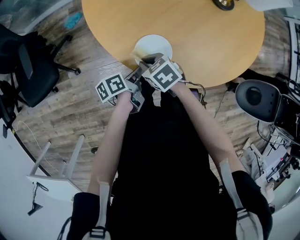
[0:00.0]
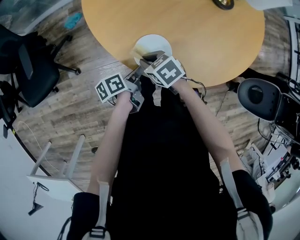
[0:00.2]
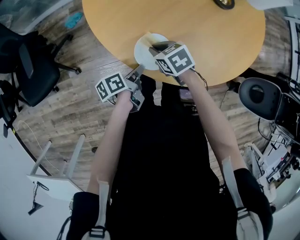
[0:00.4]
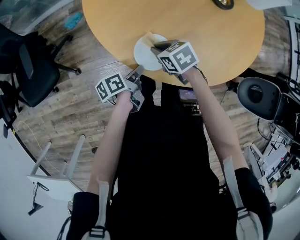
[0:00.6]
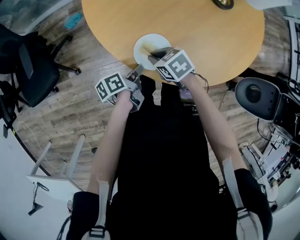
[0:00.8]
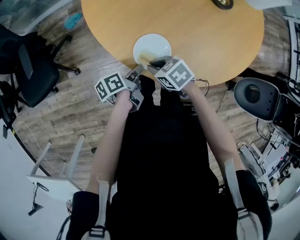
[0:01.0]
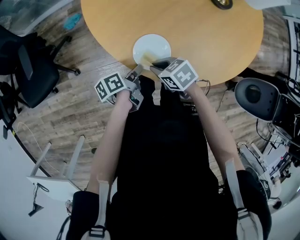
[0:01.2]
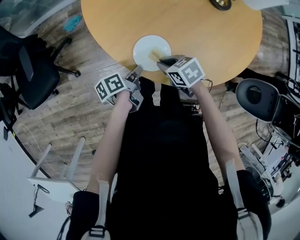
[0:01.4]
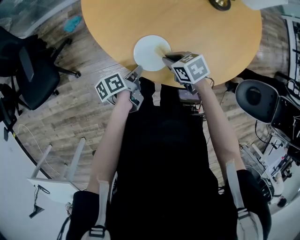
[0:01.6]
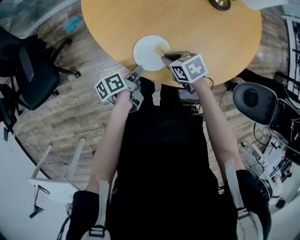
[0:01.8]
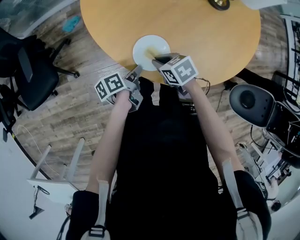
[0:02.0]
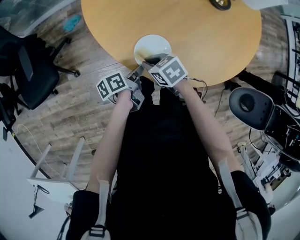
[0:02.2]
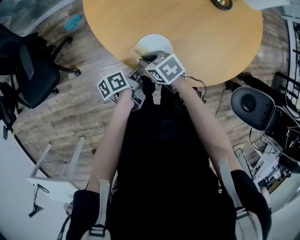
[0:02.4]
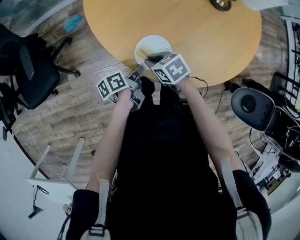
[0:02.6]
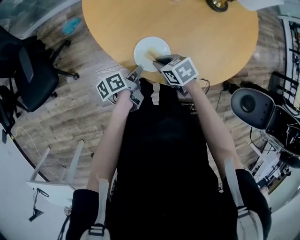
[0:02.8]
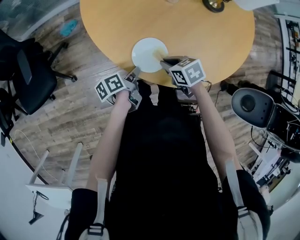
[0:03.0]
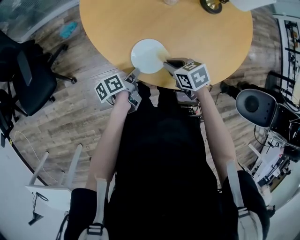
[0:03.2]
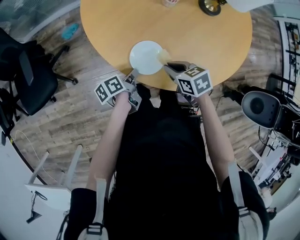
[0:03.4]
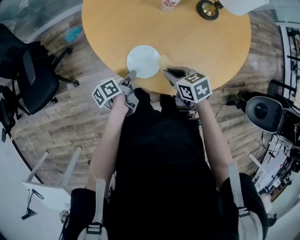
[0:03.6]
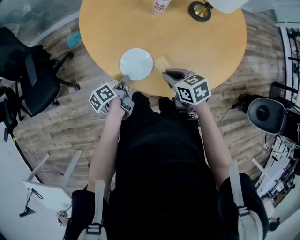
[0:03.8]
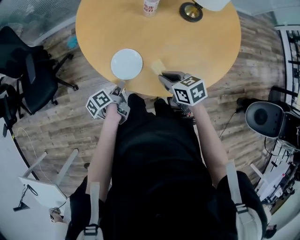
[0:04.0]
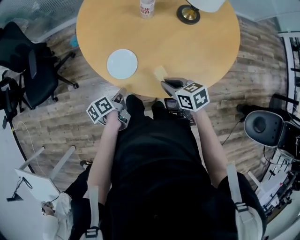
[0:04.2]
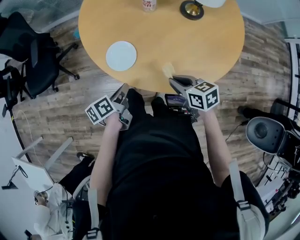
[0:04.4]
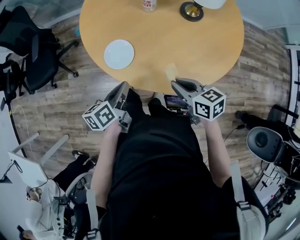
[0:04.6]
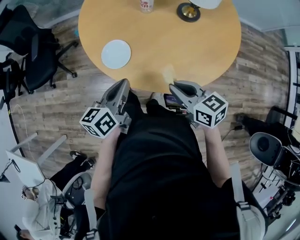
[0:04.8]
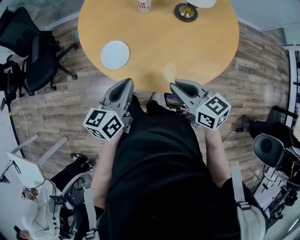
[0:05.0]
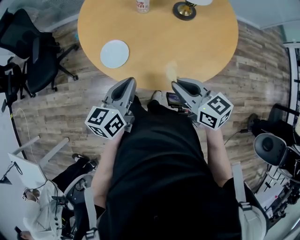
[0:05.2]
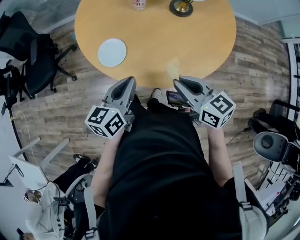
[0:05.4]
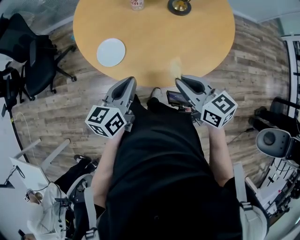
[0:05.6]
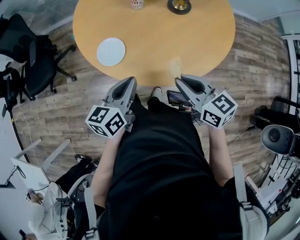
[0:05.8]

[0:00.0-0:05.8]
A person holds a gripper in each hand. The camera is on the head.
0:00.0 to 0:01.4: The right gripper changes place by some 10 cm.
0:02.8 to 0:04.4: The right gripper ends up some 25 cm from where it was.
0:04.4 to 0:05.8: The right gripper heads upward, covering approximately 10 cm, and rotates about 20 degrees.

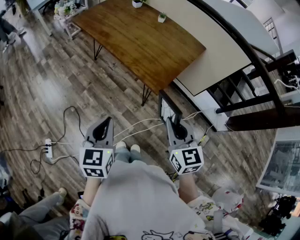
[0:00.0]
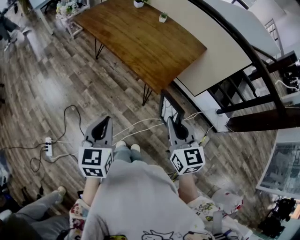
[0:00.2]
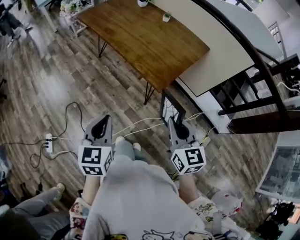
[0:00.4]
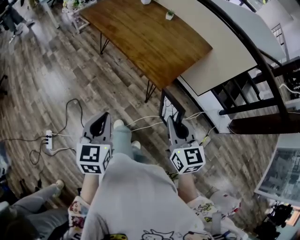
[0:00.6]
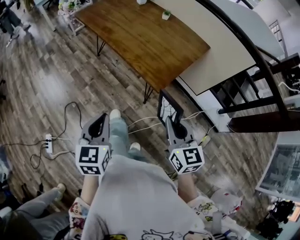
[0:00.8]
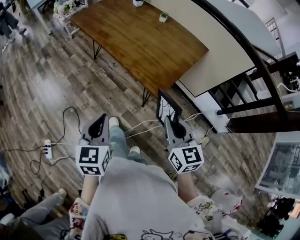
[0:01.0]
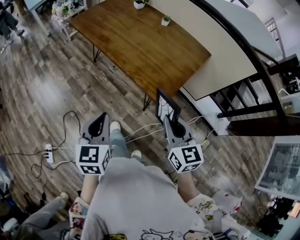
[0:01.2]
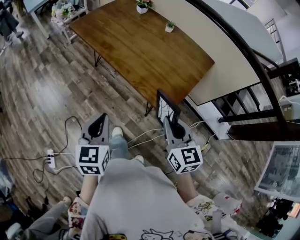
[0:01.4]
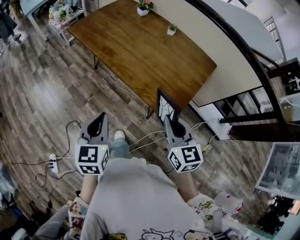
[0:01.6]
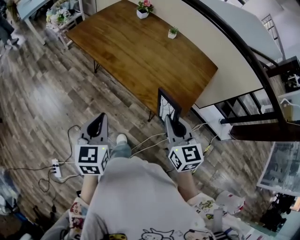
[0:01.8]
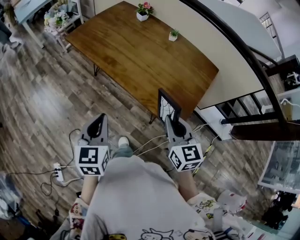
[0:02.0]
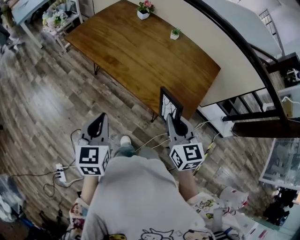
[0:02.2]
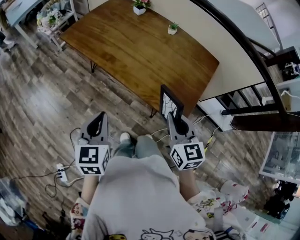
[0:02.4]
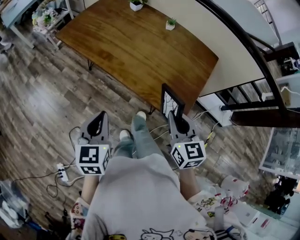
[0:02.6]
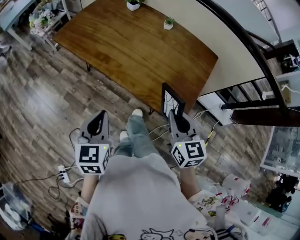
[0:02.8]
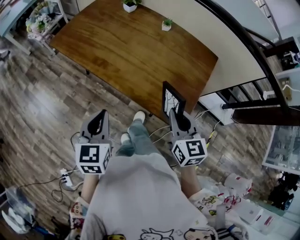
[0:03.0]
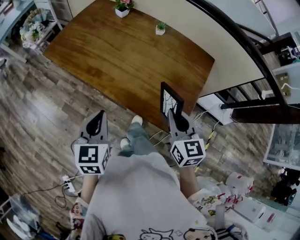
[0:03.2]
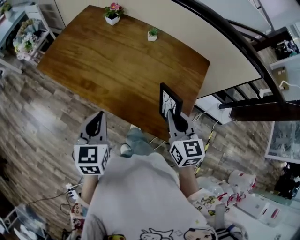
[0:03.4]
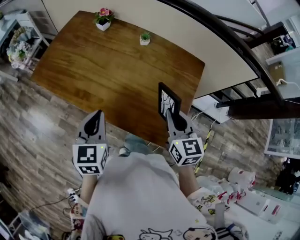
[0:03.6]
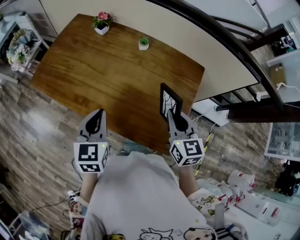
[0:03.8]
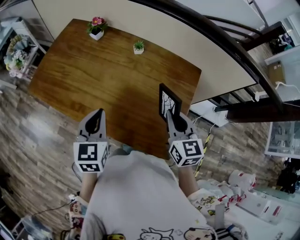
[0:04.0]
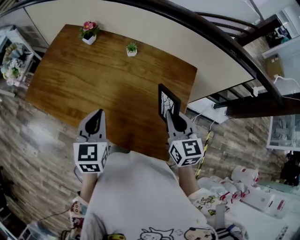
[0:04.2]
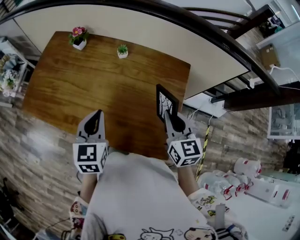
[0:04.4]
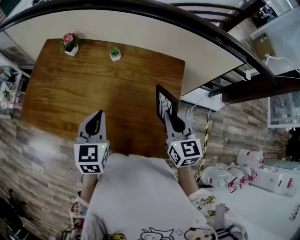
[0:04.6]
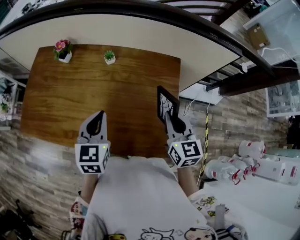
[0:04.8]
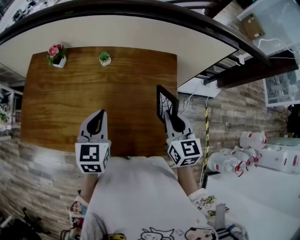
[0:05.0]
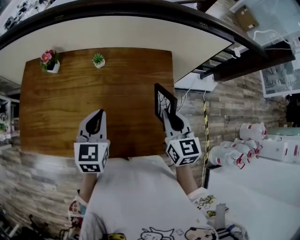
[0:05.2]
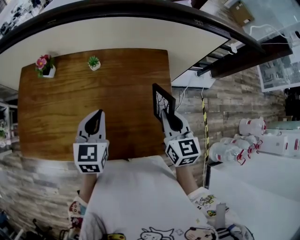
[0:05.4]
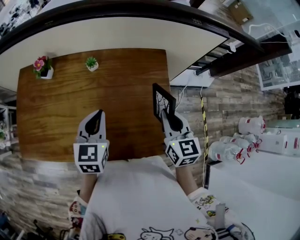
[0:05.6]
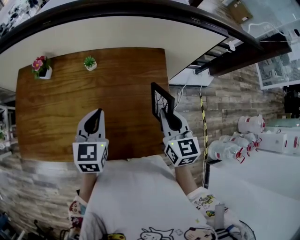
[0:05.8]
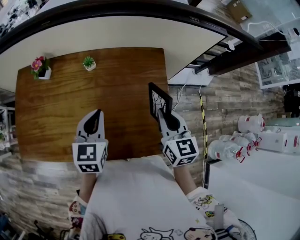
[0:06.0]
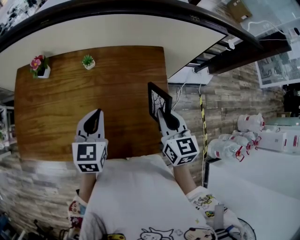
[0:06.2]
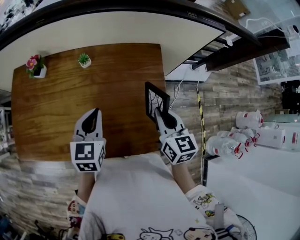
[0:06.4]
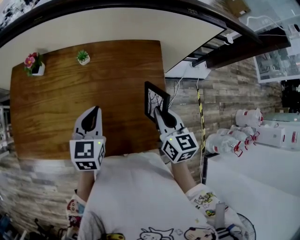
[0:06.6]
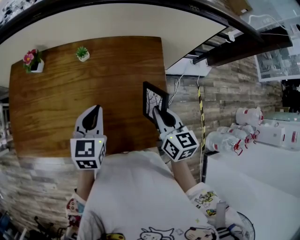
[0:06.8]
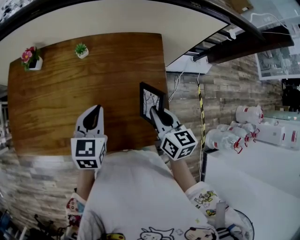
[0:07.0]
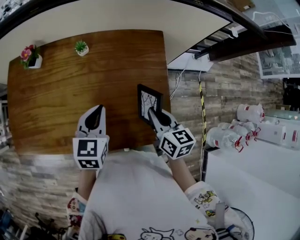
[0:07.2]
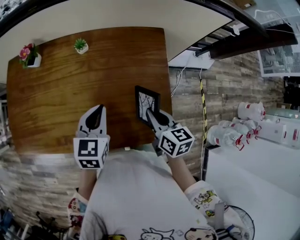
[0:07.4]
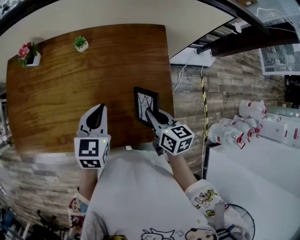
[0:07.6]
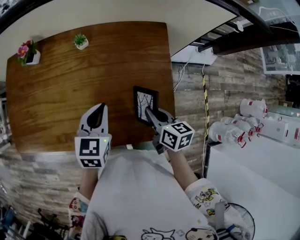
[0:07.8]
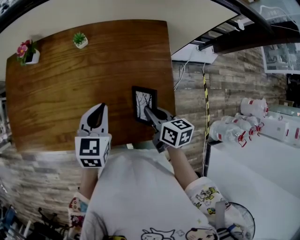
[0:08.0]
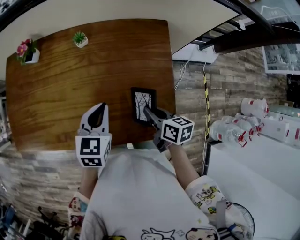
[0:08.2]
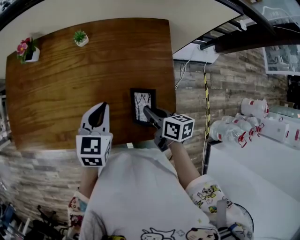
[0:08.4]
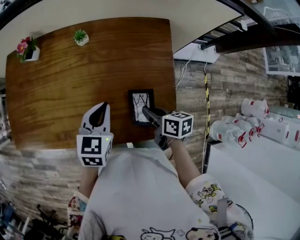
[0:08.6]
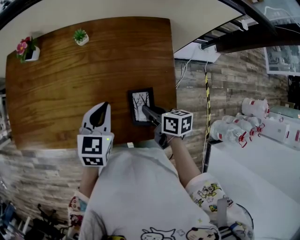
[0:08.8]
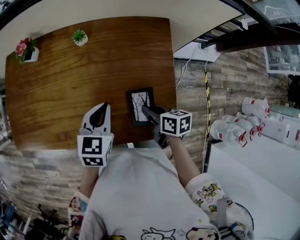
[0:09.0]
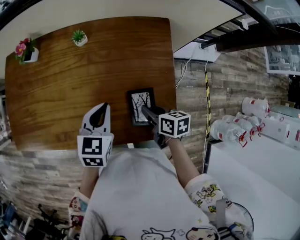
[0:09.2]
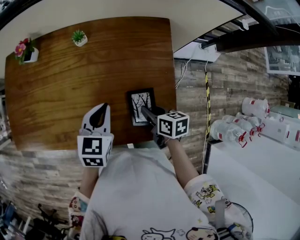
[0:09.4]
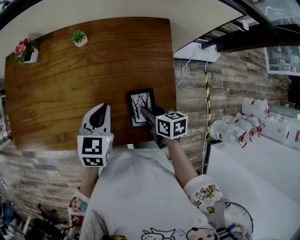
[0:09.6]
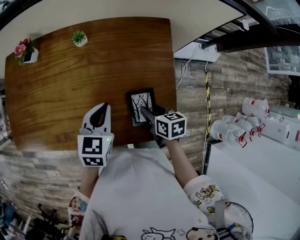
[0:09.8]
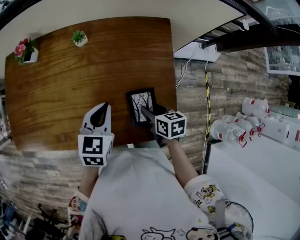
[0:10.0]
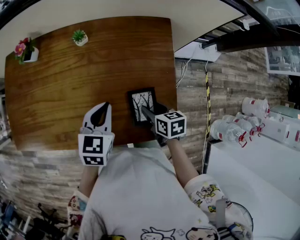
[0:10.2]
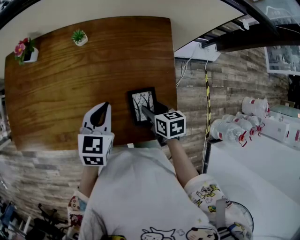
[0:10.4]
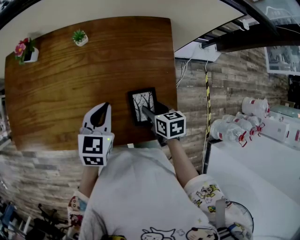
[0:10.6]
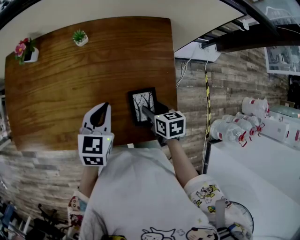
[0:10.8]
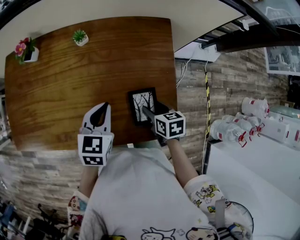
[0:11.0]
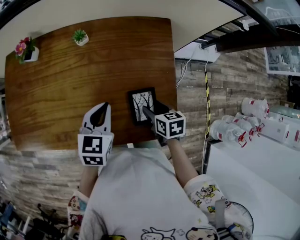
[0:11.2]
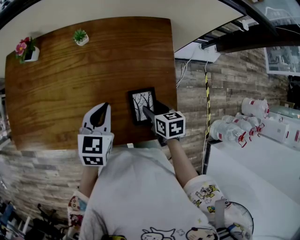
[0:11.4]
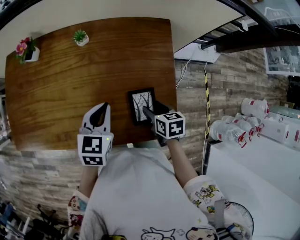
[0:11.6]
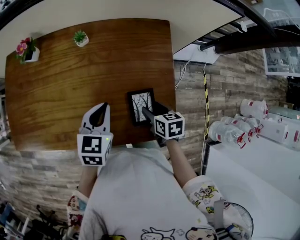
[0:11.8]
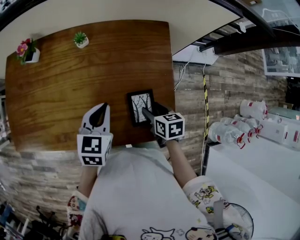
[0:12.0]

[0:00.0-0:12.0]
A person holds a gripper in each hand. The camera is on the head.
0:00.0 to 0:01.6: The left gripper shifts roughly 20 cm forward and to the left. Meanwhile the right gripper travels forward by roughly 20 cm.
0:01.6 to 0:03.0: The two grippers go roughly 10 cm forward.
0:03.0 to 0:04.4: Both grippers move forward and to the right, about 25 cm.
0:04.4 to 0:06.0: The left gripper is displaced forward by about 10 cm, and swivels approximately 20 degrees.
0:06.0 to 0:07.6: The left gripper travels downward by about 5 cm. Meanwhile the right gripper is displaced downward and backward by roughly 10 cm, and changes its angle by about 30 degrees.
0:07.6 to 0:09.0: The right gripper shifts some 5 cm downward, and changes its angle by some 20 degrees.
0:09.0 to 0:10.4: The right gripper opens up.
0:10.4 to 0:12.0: Both grippers stay about where they are.

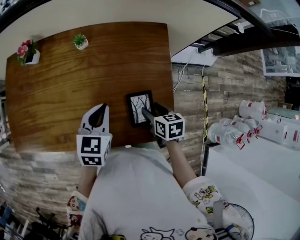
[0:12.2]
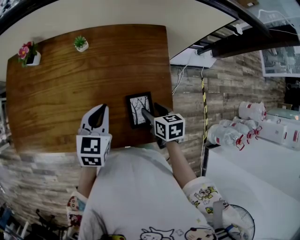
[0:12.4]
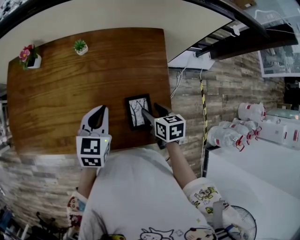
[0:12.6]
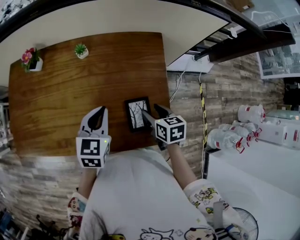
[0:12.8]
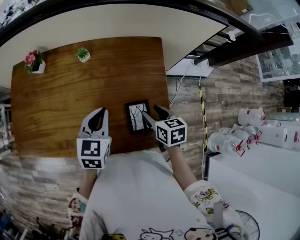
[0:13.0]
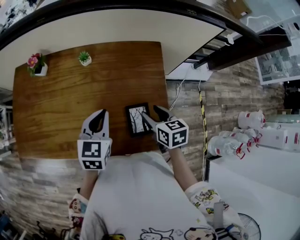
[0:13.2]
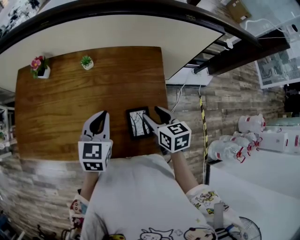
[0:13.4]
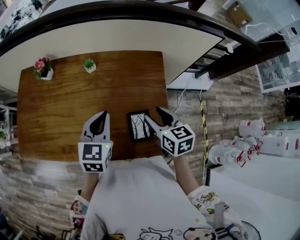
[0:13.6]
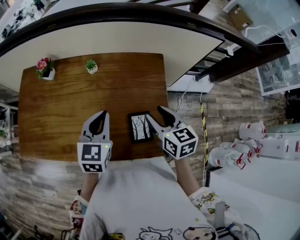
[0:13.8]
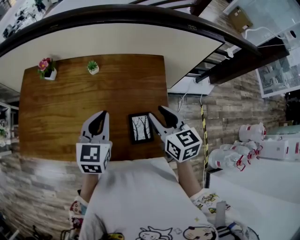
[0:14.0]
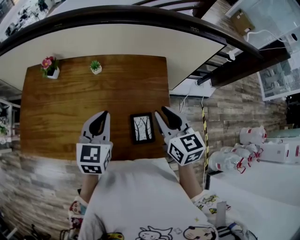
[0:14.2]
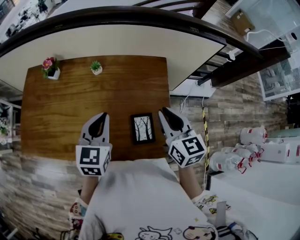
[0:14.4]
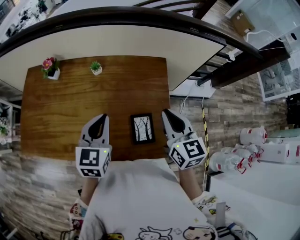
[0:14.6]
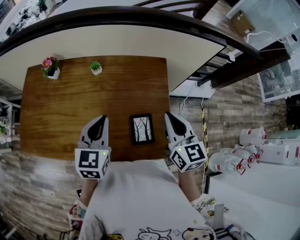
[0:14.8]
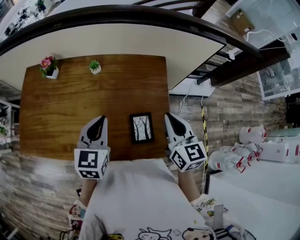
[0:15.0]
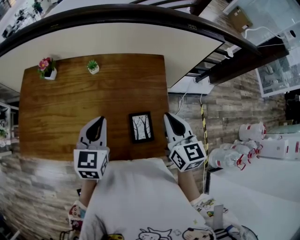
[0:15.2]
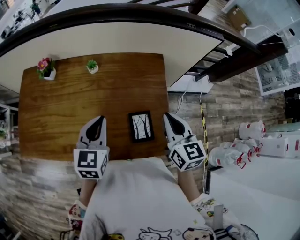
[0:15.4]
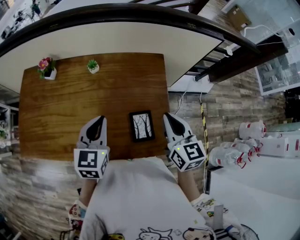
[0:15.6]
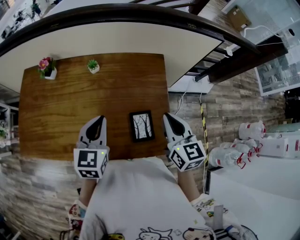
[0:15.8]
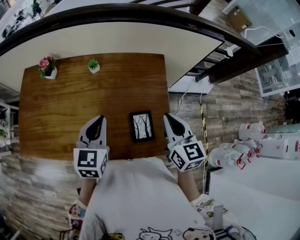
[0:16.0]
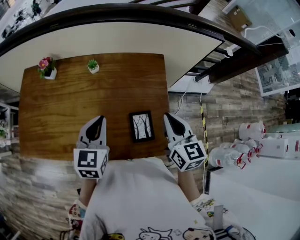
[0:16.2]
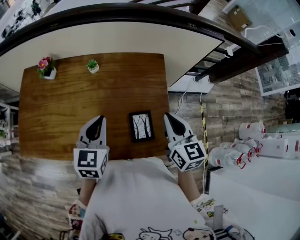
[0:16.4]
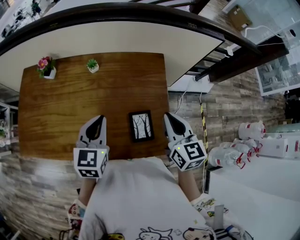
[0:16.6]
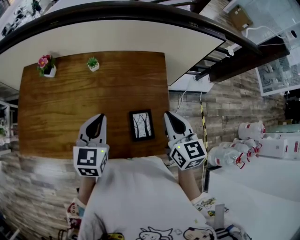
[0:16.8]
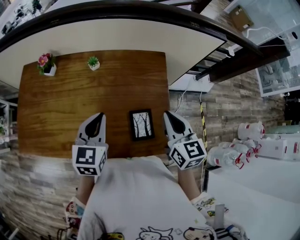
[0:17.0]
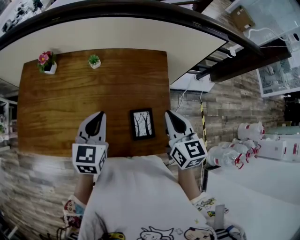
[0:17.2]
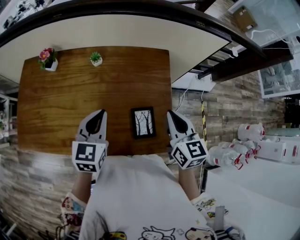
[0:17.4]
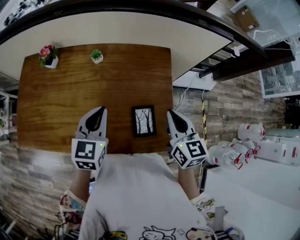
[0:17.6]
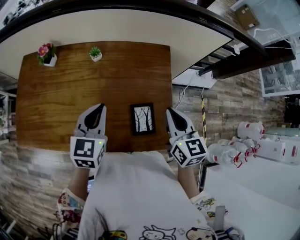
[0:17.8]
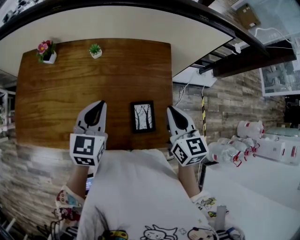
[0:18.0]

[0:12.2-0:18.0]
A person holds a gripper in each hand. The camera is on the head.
0:12.2 to 0:13.6: The right gripper shifts about 15 cm upward, and changes its angle by approximately 20 degrees, while the left gripper shifts about 10 cm upward.
0:13.6 to 0:15.0: The right gripper is displaced upward by about 10 cm, changes its angle by roughly 20 degrees, and closes.
0:15.0 to 0:16.6: Both grippers stay put.
0:16.6 to 0:18.0: There are only small adjustments of the grippers.
